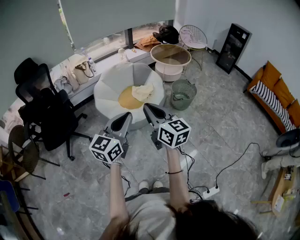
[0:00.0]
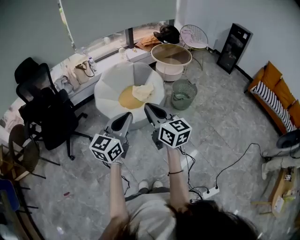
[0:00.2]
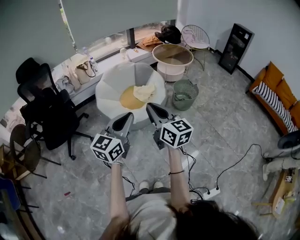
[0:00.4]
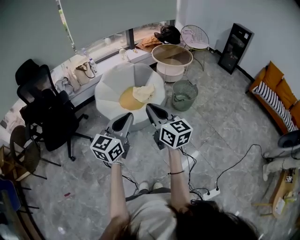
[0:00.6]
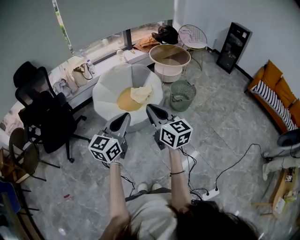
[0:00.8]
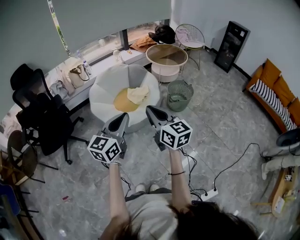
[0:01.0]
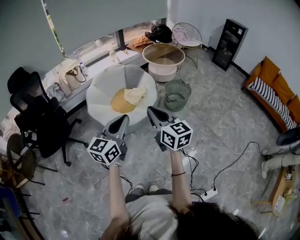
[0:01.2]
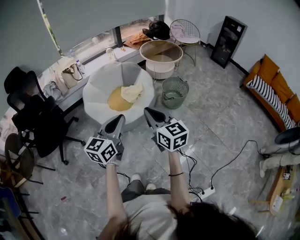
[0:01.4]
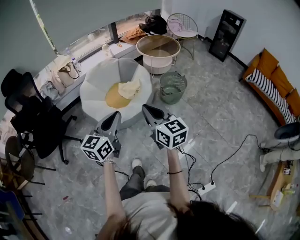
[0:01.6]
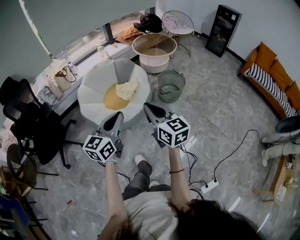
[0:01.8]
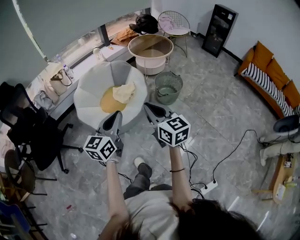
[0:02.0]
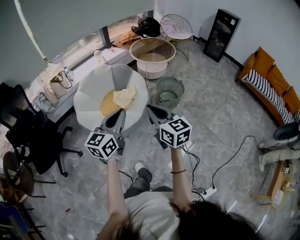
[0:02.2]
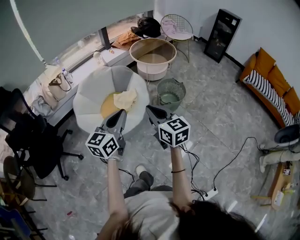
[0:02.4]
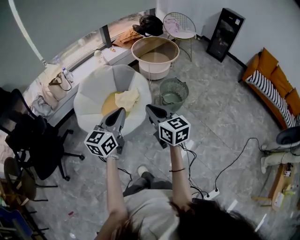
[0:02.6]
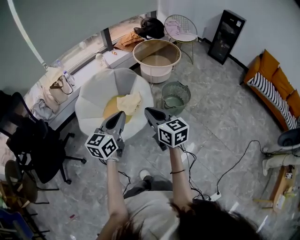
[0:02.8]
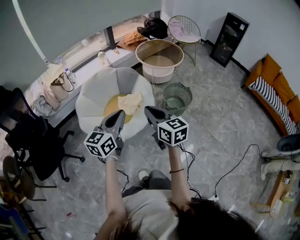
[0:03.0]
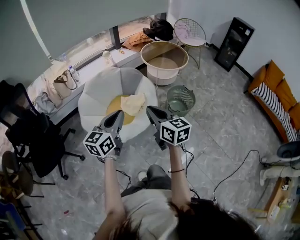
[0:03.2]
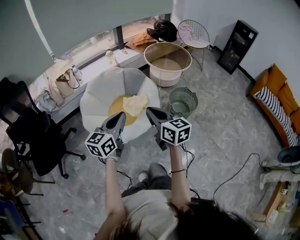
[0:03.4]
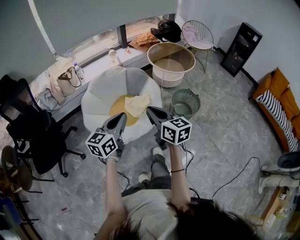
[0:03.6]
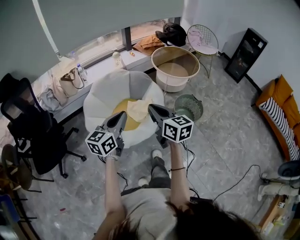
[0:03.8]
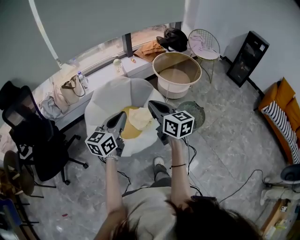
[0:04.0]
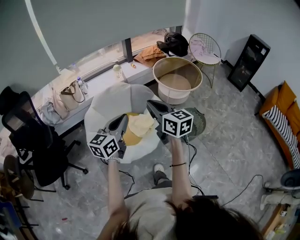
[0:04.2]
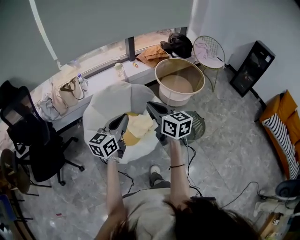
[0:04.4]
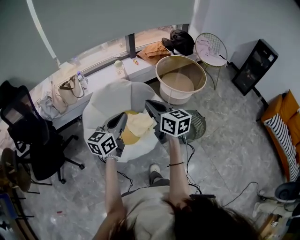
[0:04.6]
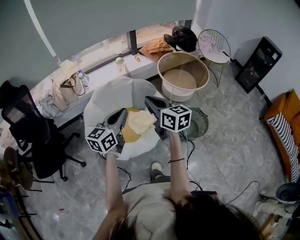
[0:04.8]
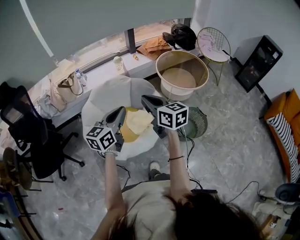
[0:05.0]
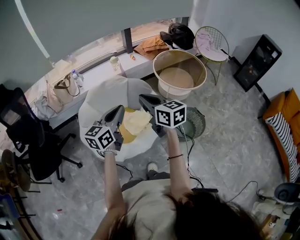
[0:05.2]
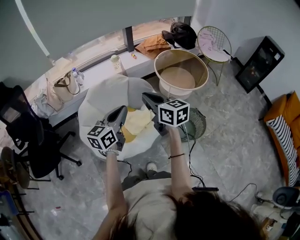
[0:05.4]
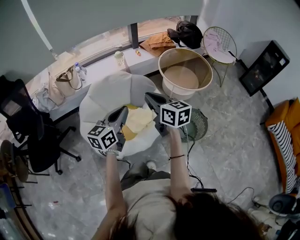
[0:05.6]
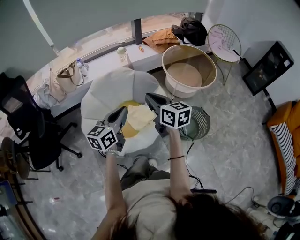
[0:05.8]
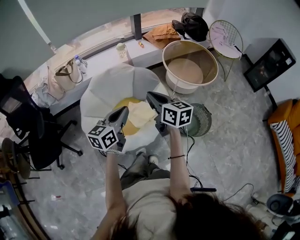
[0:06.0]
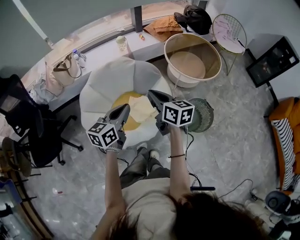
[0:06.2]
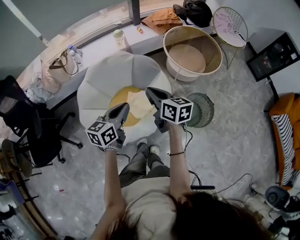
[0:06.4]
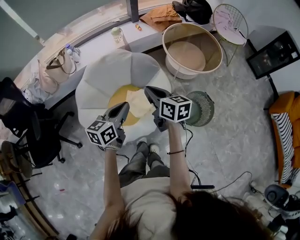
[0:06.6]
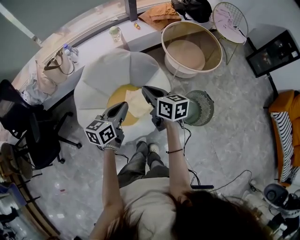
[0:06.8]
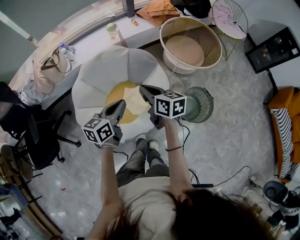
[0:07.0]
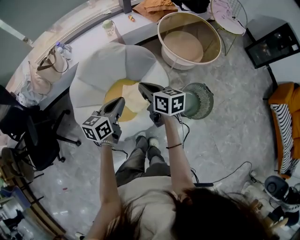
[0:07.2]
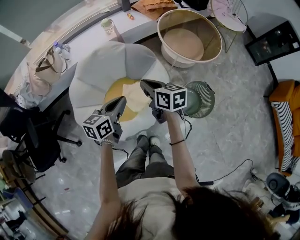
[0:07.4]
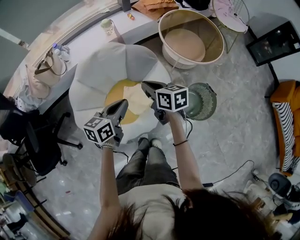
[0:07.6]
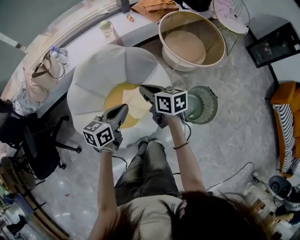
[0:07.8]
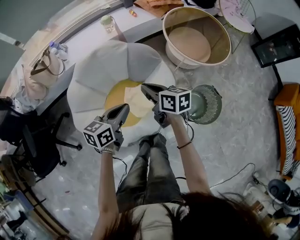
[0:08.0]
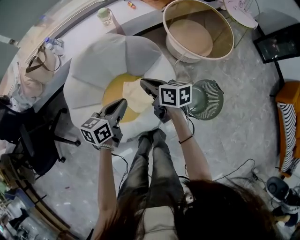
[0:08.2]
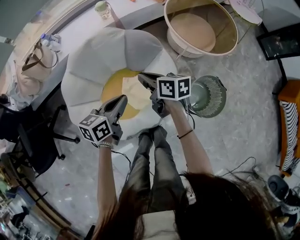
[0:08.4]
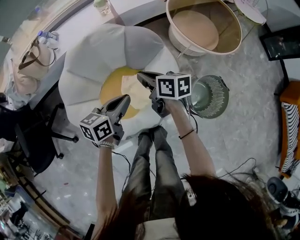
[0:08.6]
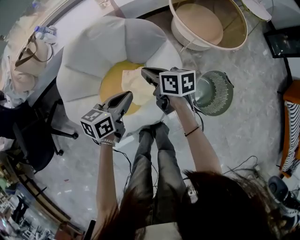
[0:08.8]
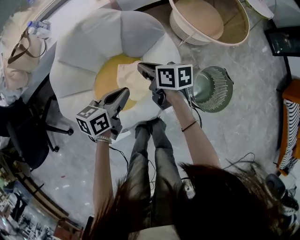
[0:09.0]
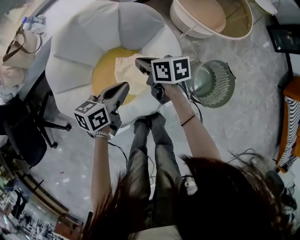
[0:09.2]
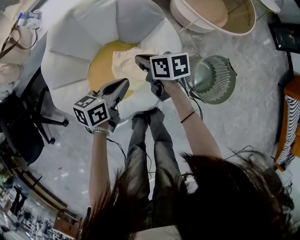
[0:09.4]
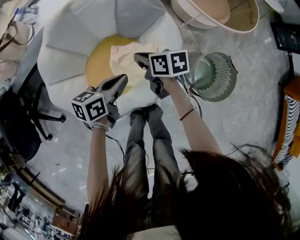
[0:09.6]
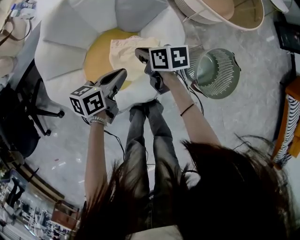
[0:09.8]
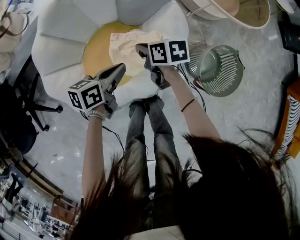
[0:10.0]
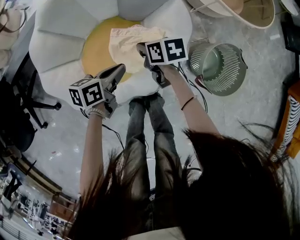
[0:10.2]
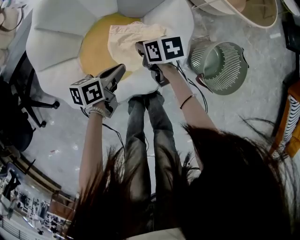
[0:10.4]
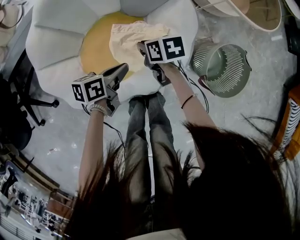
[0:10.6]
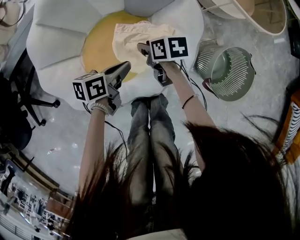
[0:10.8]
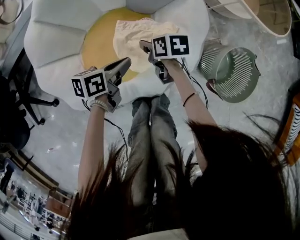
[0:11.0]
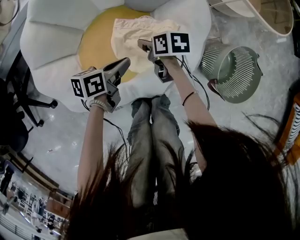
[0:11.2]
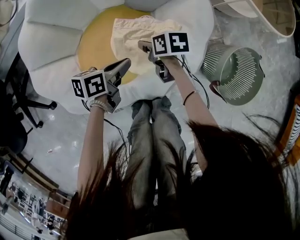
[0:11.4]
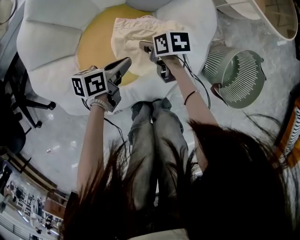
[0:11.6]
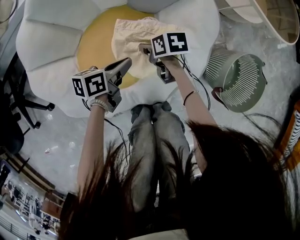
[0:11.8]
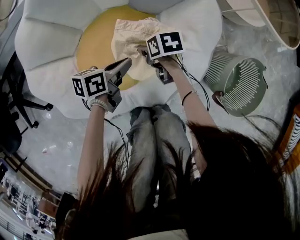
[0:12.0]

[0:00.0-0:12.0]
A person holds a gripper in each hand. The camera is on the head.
0:00.0 to 0:01.6: The left gripper is displaced forward and to the right by some 10 cm, while the right gripper travels to the right and forward by approximately 15 cm.
0:01.6 to 0:03.0: The two grippers go about 20 cm forward.
0:03.0 to 0:04.4: The two grippers go about 20 cm forward.
0:04.4 to 0:06.0: Both grippers travel together forward and downward, approximately 15 cm.
0:06.0 to 0:07.6: Both grippers move downward and forward, roughly 15 cm.
0:07.6 to 0:09.0: Both grippers move downward, approximately 20 cm.
0:09.0 to 0:10.4: Both grippers travel together downward, some 20 cm. The left gripper changes its angle by approximately 20 degrees. Meanwhile the right gripper rotates approximately 20 degrees.
0:10.4 to 0:12.0: Both grippers move downward, some 15 cm. The right gripper opens.

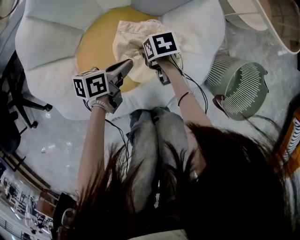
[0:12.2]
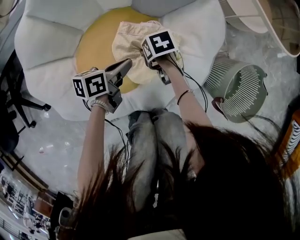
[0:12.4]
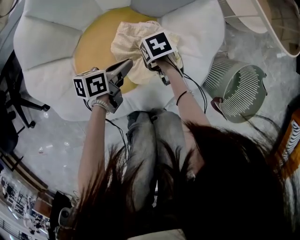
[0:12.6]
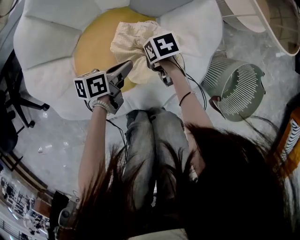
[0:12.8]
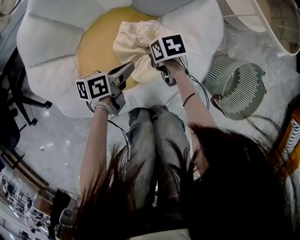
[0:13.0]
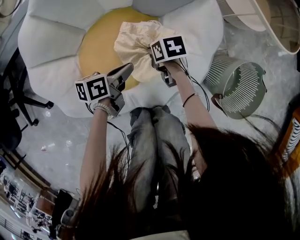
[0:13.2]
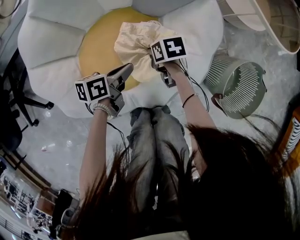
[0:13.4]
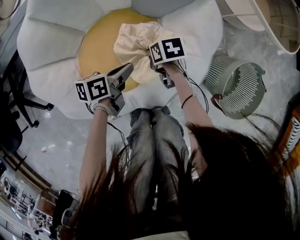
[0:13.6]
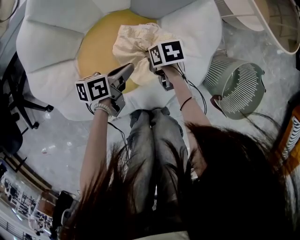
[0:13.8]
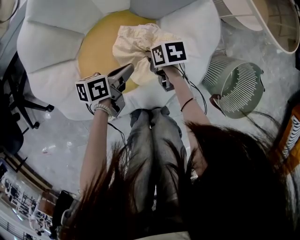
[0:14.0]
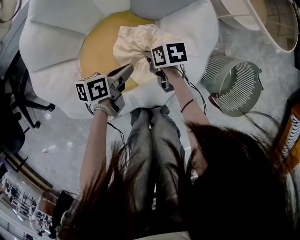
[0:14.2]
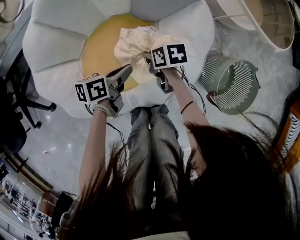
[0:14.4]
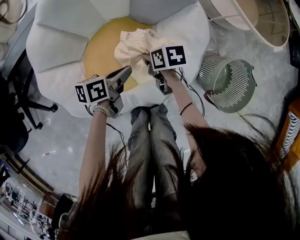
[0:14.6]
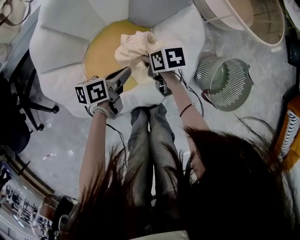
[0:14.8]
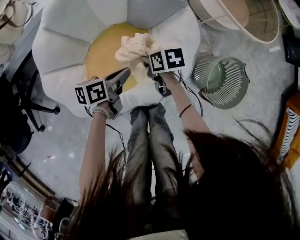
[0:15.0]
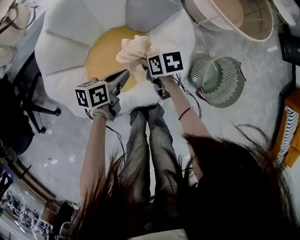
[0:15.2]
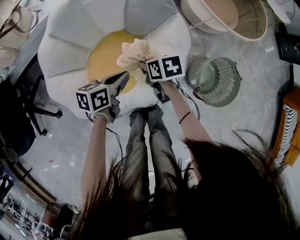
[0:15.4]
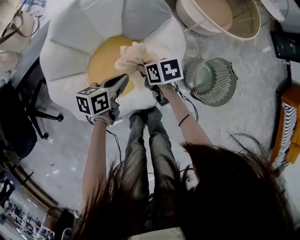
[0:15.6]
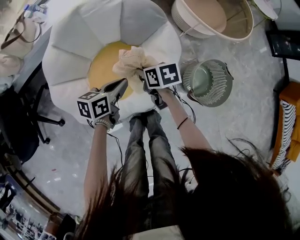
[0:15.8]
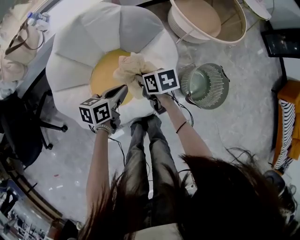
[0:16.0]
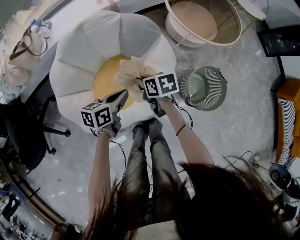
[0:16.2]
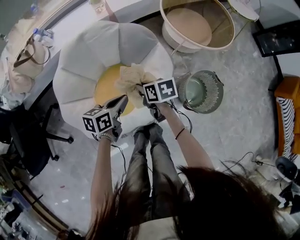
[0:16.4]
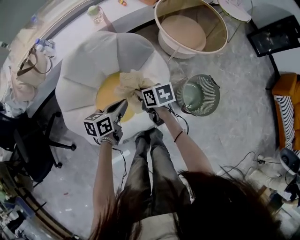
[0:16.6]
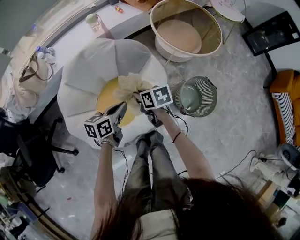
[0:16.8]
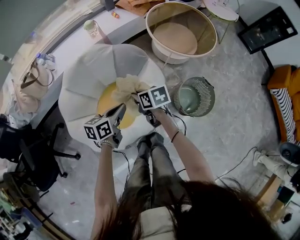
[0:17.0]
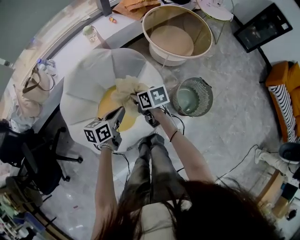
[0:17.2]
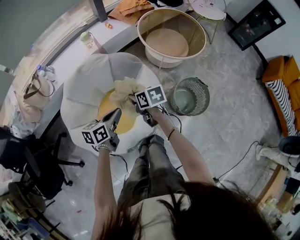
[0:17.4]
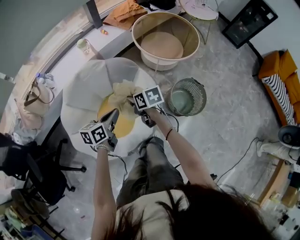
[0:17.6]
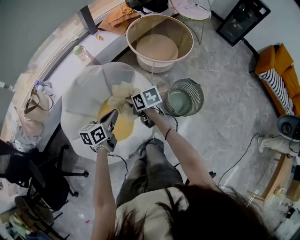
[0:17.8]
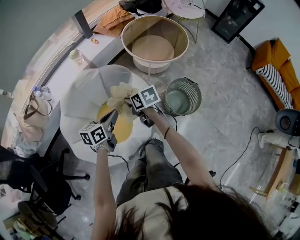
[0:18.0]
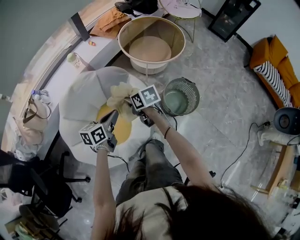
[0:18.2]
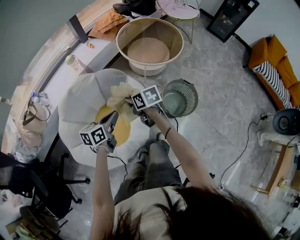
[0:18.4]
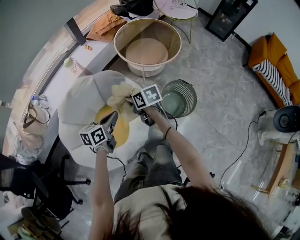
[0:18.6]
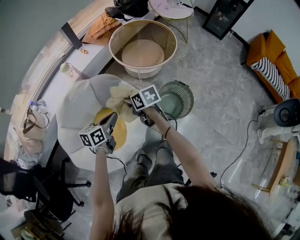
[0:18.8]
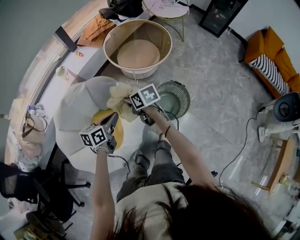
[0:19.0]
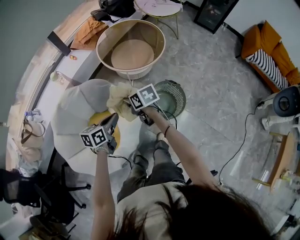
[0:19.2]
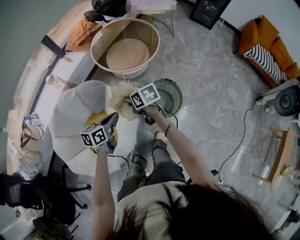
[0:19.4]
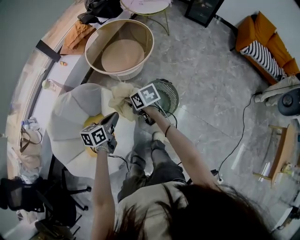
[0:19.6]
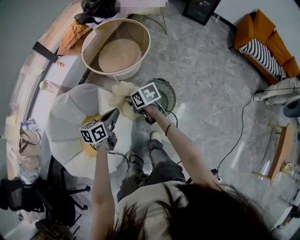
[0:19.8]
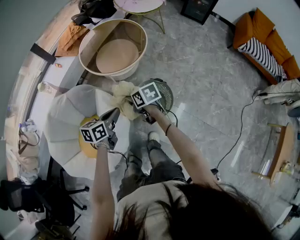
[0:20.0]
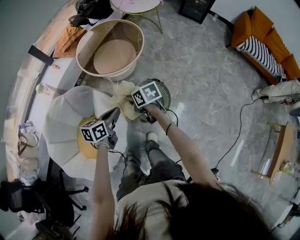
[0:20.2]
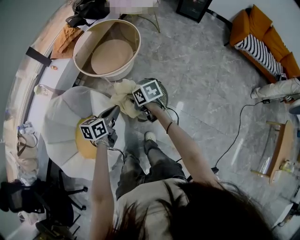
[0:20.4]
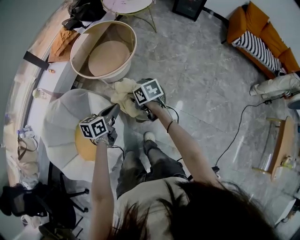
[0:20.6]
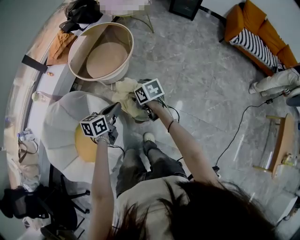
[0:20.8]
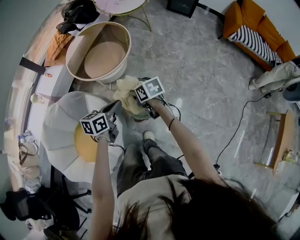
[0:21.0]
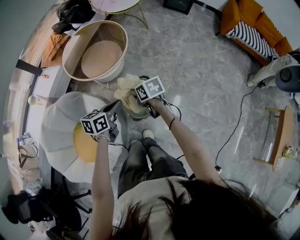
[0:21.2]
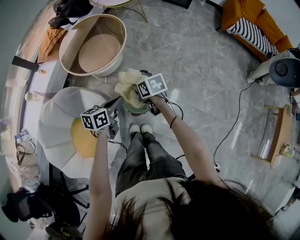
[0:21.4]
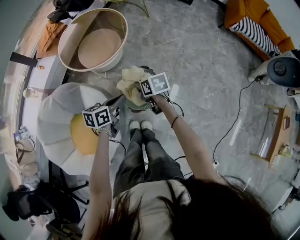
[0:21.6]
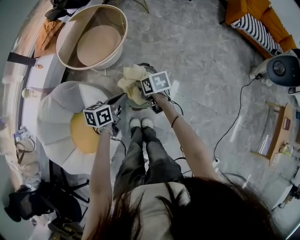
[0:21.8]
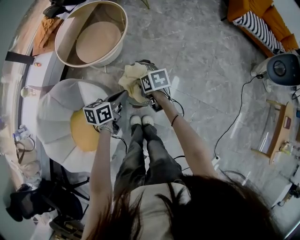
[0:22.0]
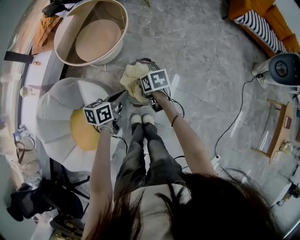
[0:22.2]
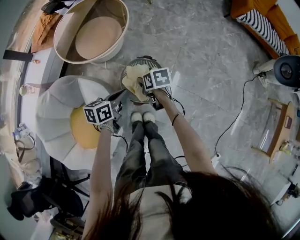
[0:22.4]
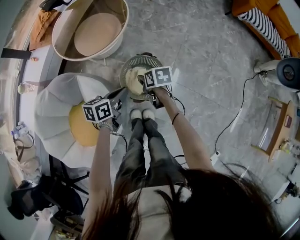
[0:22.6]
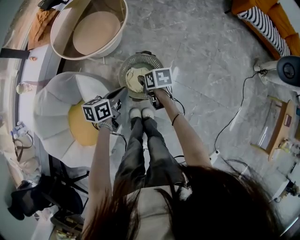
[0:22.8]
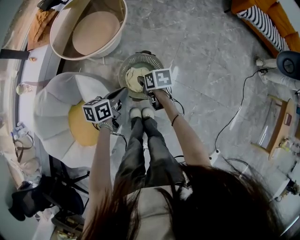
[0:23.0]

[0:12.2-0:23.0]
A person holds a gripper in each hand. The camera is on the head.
0:12.2 to 0:13.8: The right gripper closes up.
0:13.8 to 0:15.2: Both grippers move upward, about 15 cm.
0:15.2 to 0:16.8: Both grippers move upward, about 25 cm.
0:16.8 to 0:18.4: The right gripper shifts approximately 10 cm upward and to the right; the left gripper is displaced upward by about 10 cm.
0:18.4 to 0:20.0: The two grippers go some 25 cm to the right.
0:20.0 to 0:21.4: Both grippers move to the right, some 15 cm.
0:21.4 to 0:23.0: Both grippers move downward, roughly 10 cm.

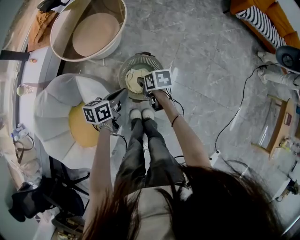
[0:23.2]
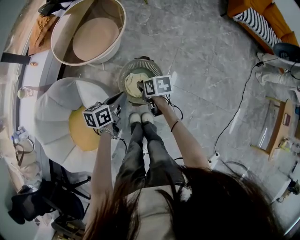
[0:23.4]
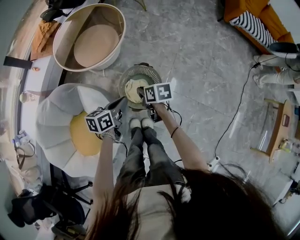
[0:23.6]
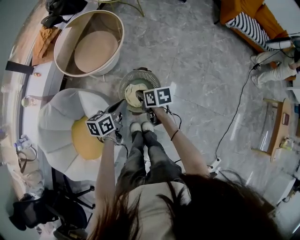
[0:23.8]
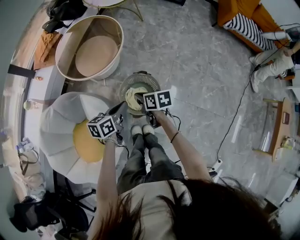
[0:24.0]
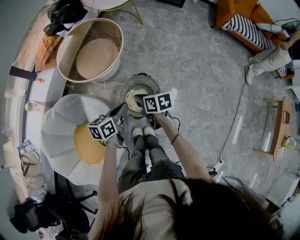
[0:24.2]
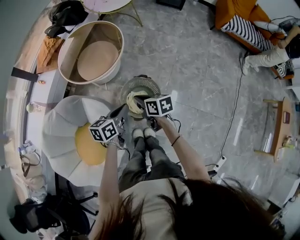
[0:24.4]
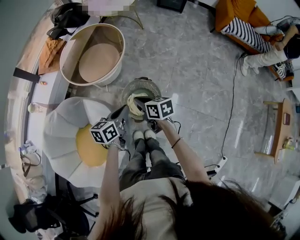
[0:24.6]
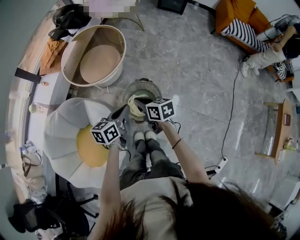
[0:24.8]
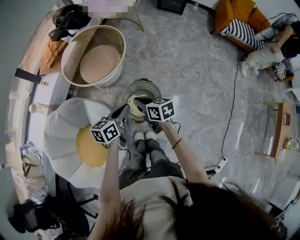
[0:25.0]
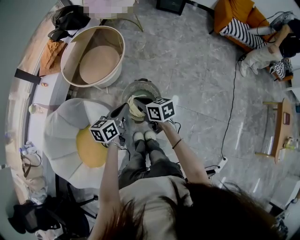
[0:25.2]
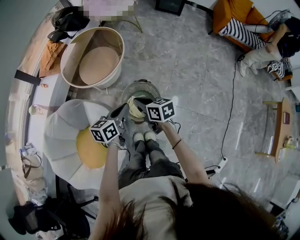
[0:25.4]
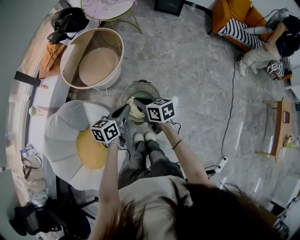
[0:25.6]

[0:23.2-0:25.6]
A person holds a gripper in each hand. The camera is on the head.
0:23.2 to 0:24.4: The left gripper heads upward, covering roughly 10 cm; the right gripper goes approximately 10 cm upward, changes its angle by about 20 degrees, and closes.
0:24.4 to 0:25.6: There are only small adjustments of the grippers.
